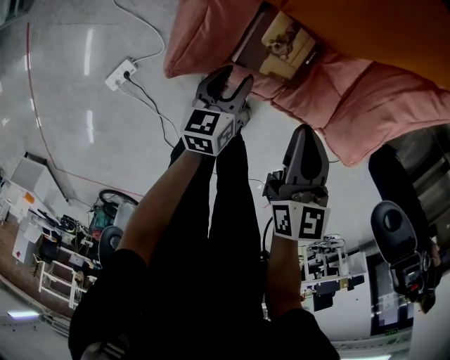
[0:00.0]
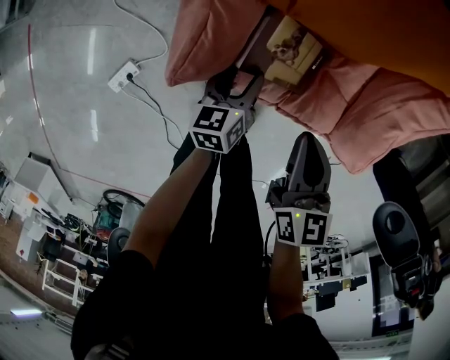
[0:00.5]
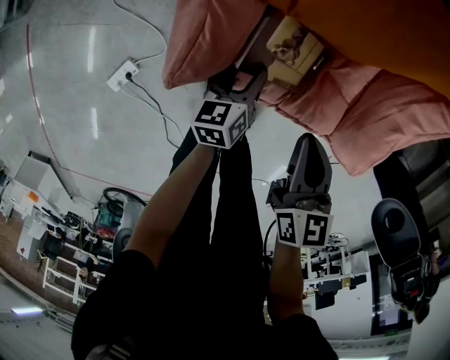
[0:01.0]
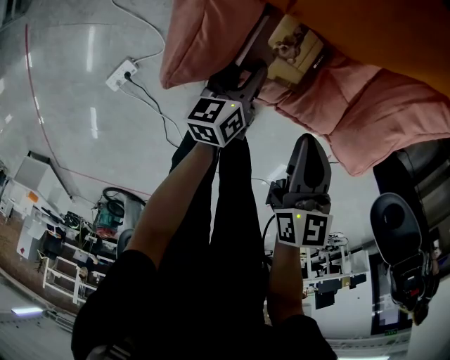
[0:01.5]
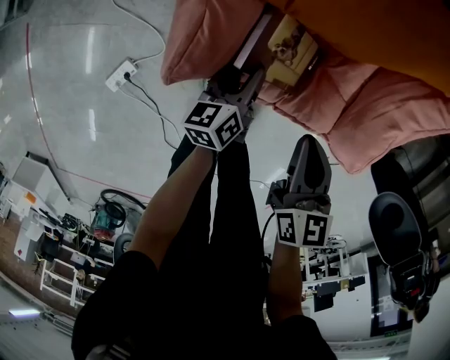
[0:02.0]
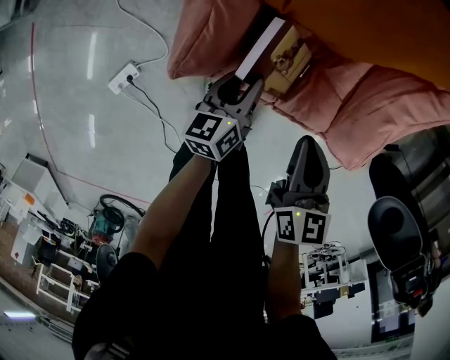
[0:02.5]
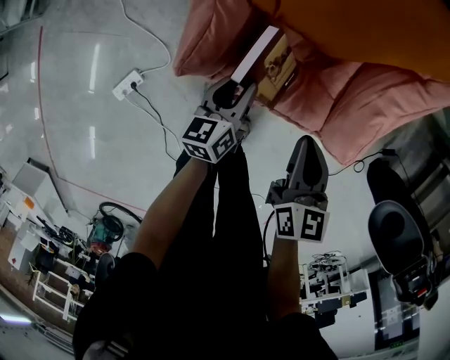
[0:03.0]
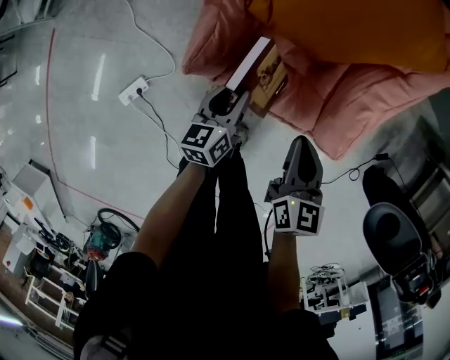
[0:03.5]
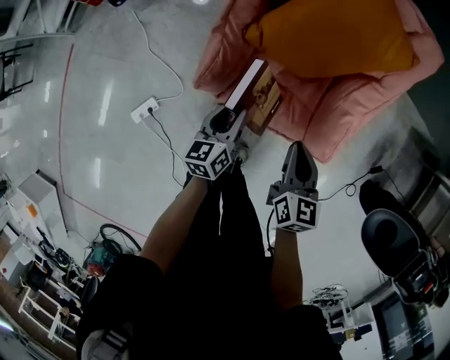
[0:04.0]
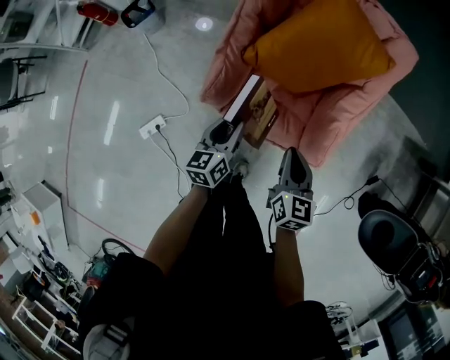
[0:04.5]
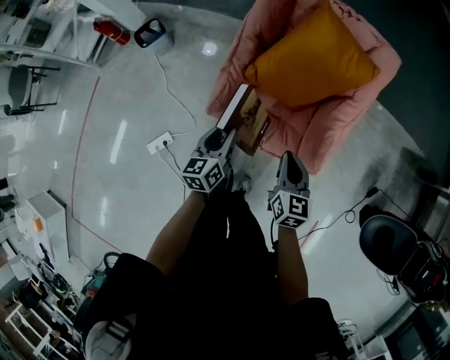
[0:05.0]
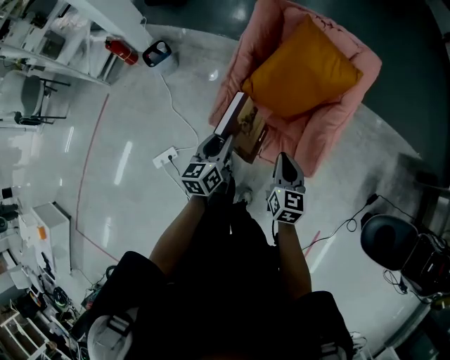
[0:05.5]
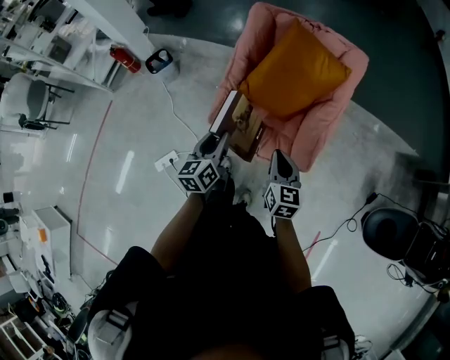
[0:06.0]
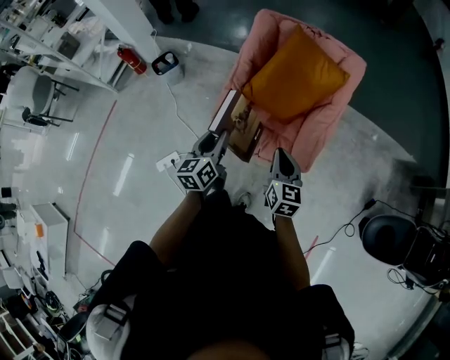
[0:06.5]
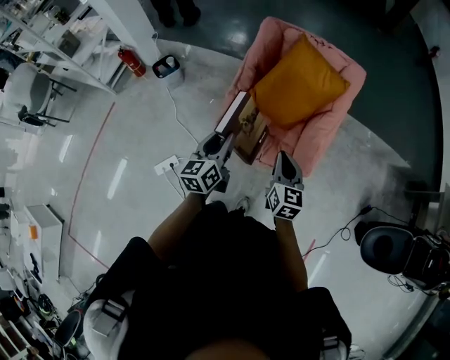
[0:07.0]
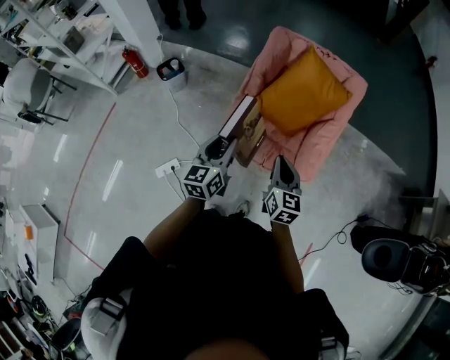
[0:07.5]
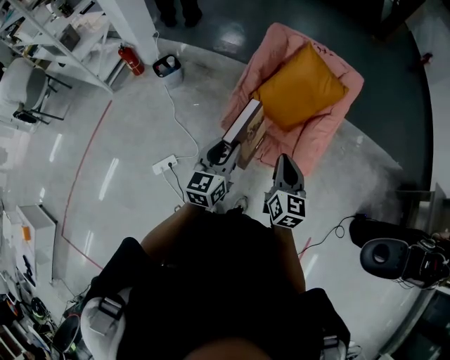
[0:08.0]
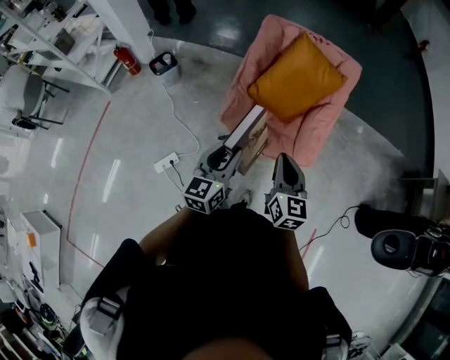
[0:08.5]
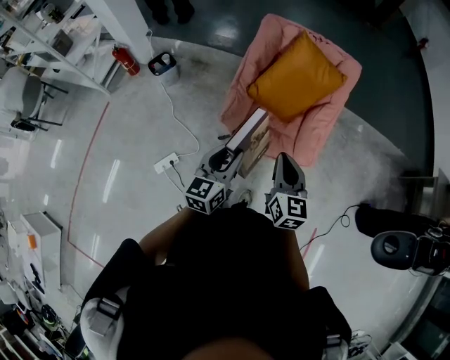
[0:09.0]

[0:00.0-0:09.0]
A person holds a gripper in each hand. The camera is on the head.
0:00.0 to 0:02.0: The grippers stay close to where they were, moving slightly.
0:02.0 to 0:04.5: The grippers both shift upward by about 25 cm.
0:04.5 to 0:07.0: The two grippers go about 20 cm upward and backward.
0:07.0 to 0:09.0: The left gripper heads backward, covering some 10 cm. The right gripper heads upward, backward and to the left, covering approximately 15 cm.

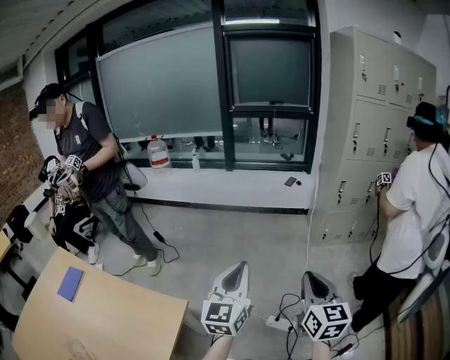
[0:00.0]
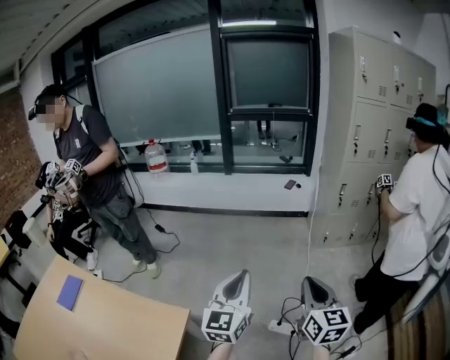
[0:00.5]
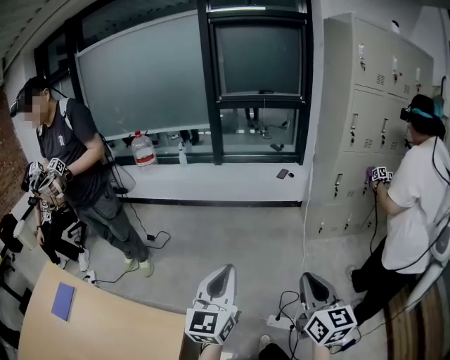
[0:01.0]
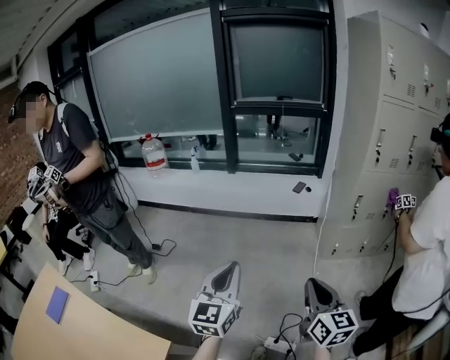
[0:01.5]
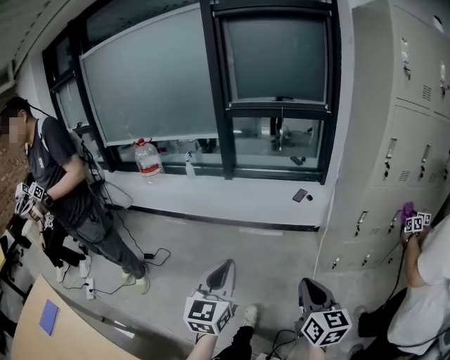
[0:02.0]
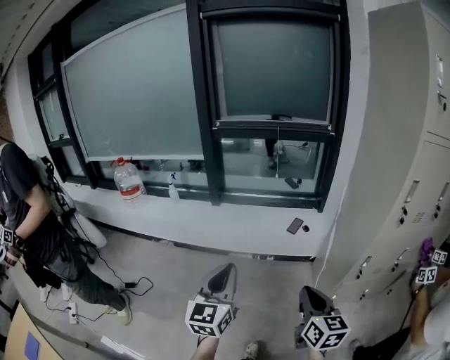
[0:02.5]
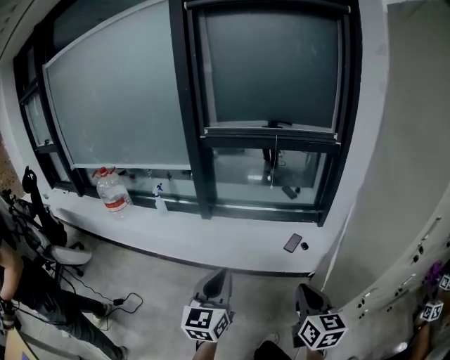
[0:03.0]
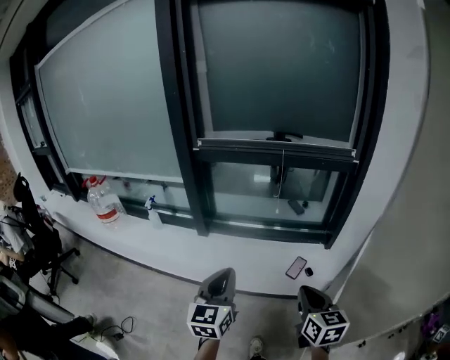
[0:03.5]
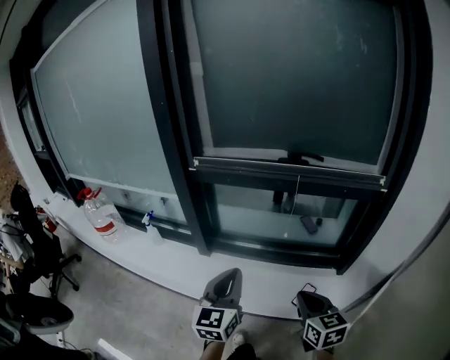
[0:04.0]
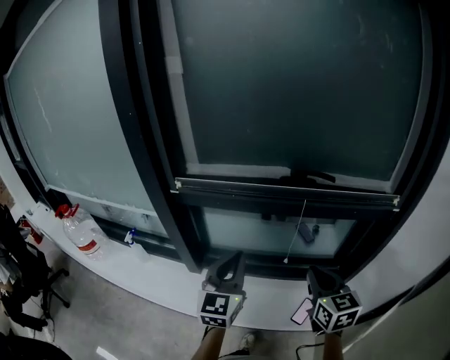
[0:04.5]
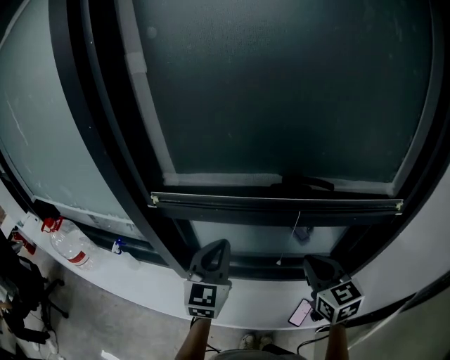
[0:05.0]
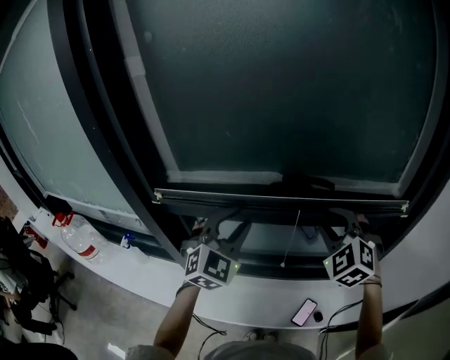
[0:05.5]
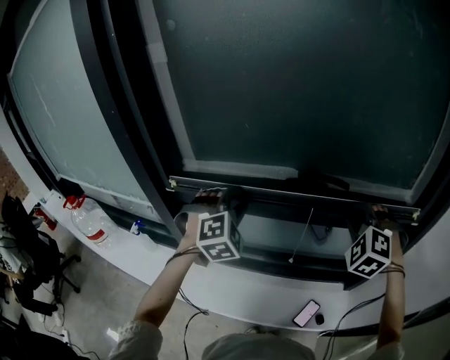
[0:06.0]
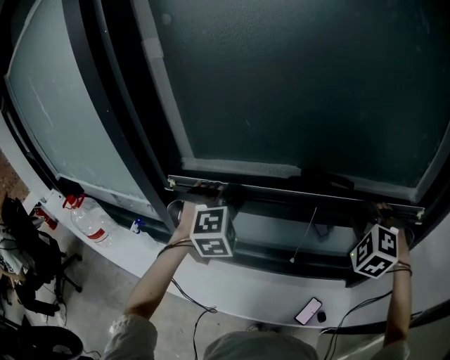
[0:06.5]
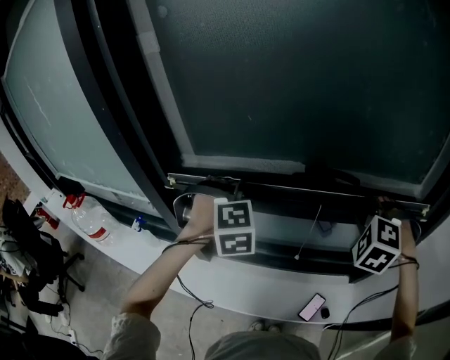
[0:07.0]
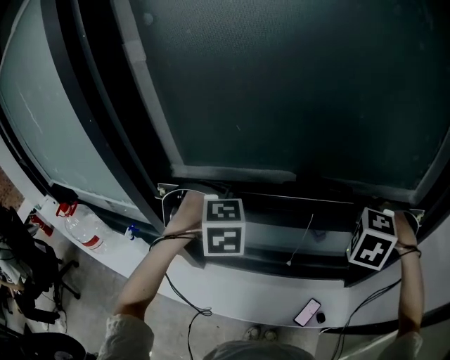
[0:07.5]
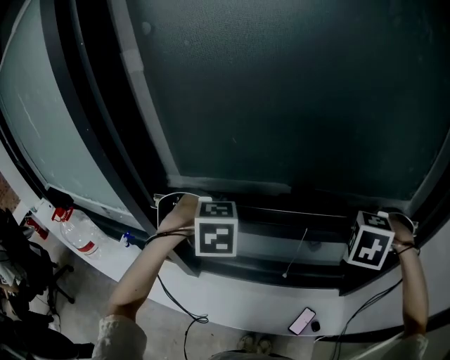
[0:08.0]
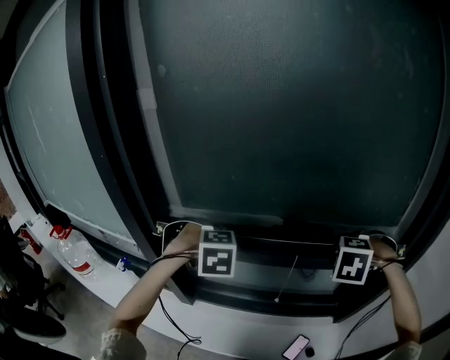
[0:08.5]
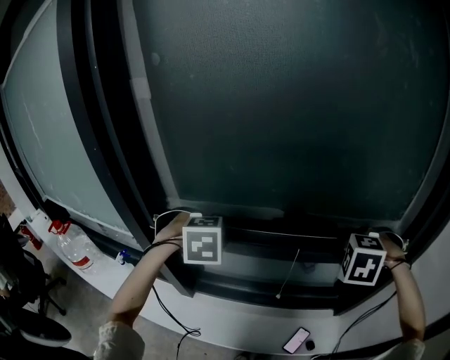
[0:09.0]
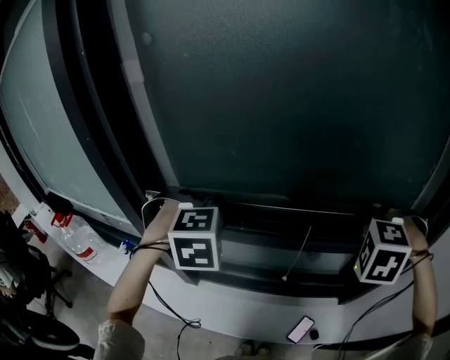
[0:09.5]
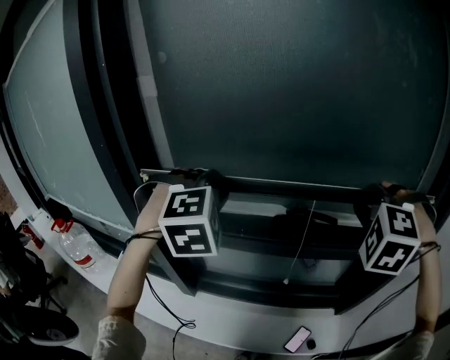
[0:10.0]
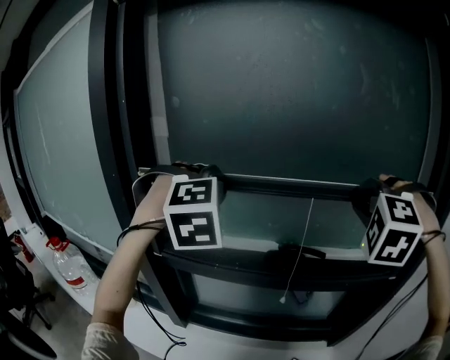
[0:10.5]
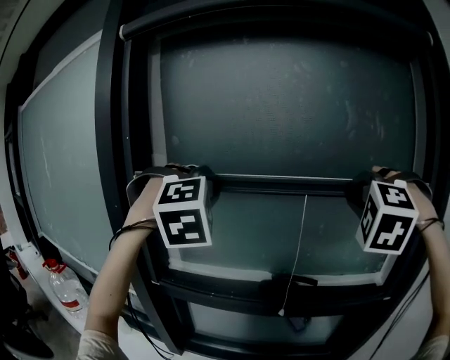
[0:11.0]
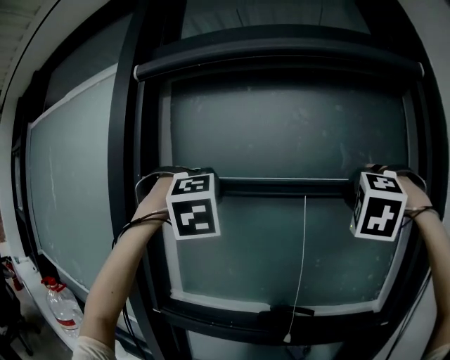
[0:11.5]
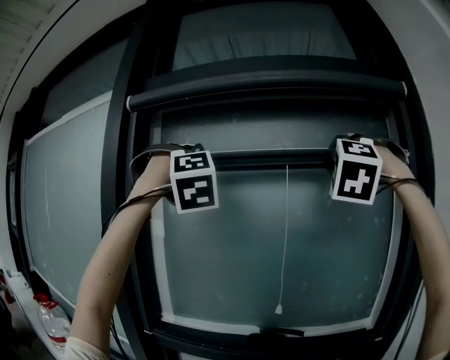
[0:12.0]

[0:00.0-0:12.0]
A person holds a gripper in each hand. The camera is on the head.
0:00.0 to 0:02.0: Both grippers travel together forward, about 35 cm.
0:02.0 to 0:04.0: The pair of grippers is taken forward, approximately 80 cm. The right gripper changes its angle by roughly 20 degrees.
0:04.0 to 0:06.0: Both grippers travel together forward, approximately 35 cm. The left gripper twists approximately 70 degrees clockwise, seen from behind, and opens its fingers. The right gripper rotates around the line of its fingers by approximately 70 degrees, counterclockwise from behind.
0:06.0 to 0:08.0: The left gripper angles its fingers downward, by approximately 30 degrees, and closes, while the right gripper swivels some 30 degrees.
0:08.0 to 0:10.0: Both grippers travel together upward, about 15 cm. The left gripper changes its angle by about 30 degrees, while the right gripper turns by about 30 degrees.
0:10.0 to 0:12.0: Both grippers move upward, some 40 cm. The right gripper points its fingers about 40 degrees further upward, while the left gripper angles its fingers upward, by roughly 40 degrees.

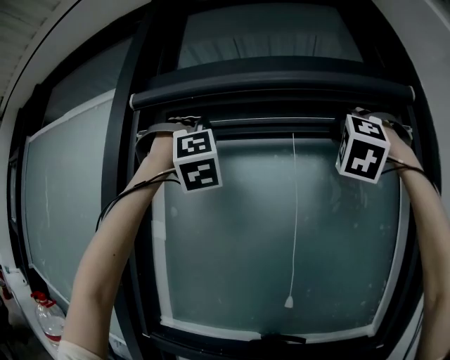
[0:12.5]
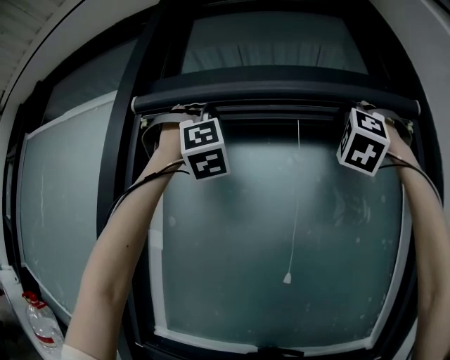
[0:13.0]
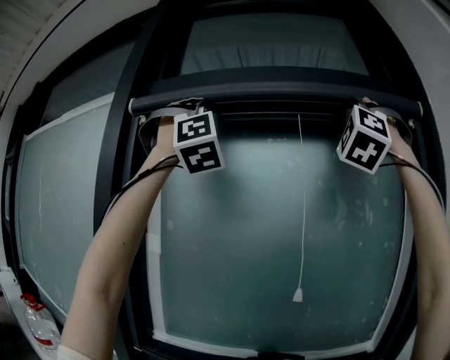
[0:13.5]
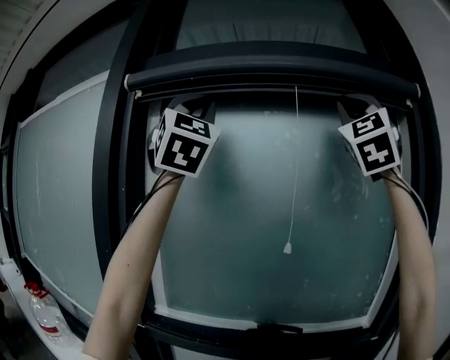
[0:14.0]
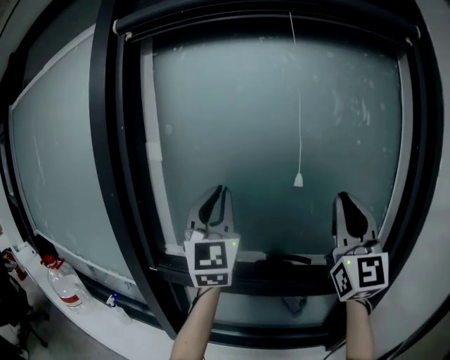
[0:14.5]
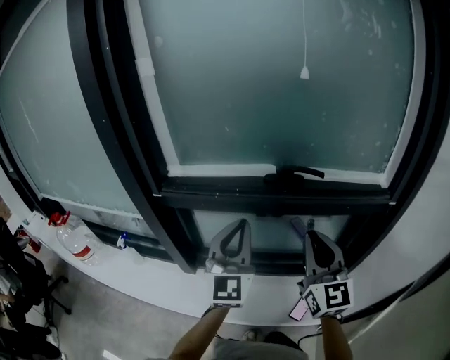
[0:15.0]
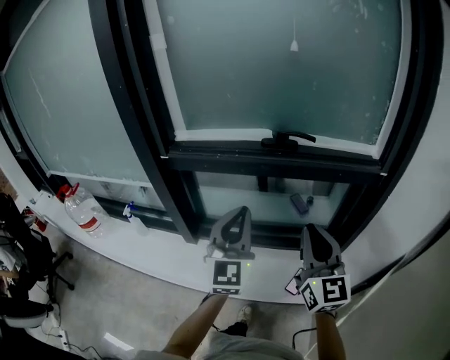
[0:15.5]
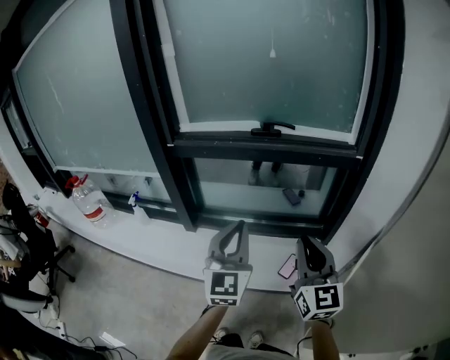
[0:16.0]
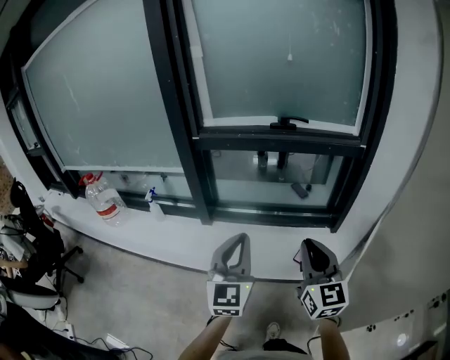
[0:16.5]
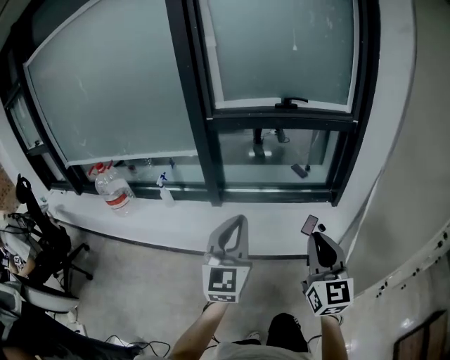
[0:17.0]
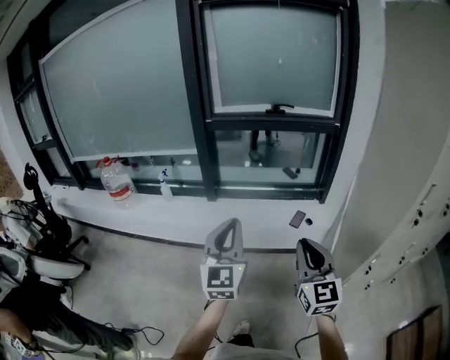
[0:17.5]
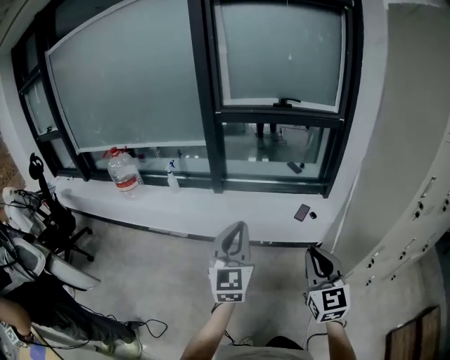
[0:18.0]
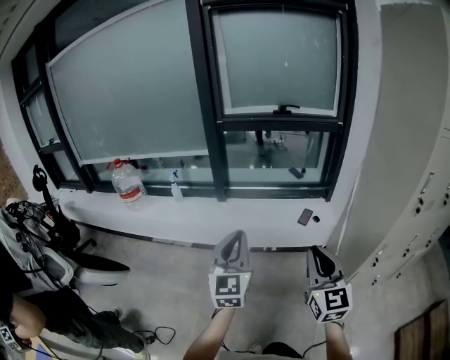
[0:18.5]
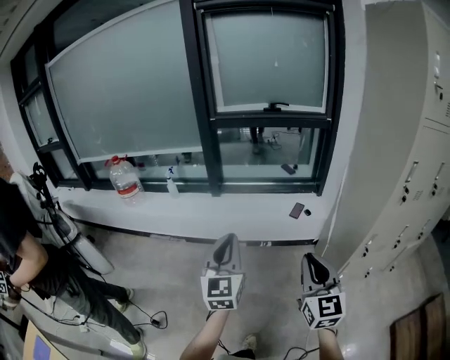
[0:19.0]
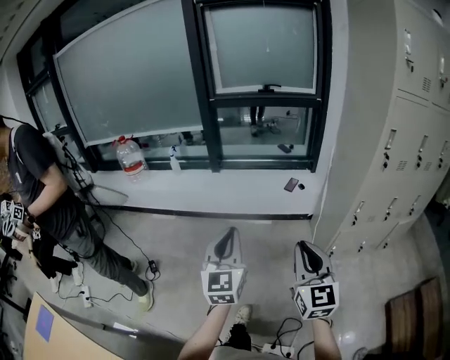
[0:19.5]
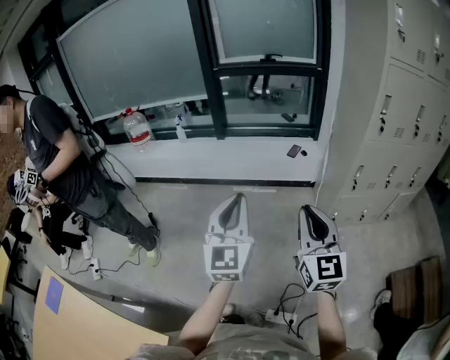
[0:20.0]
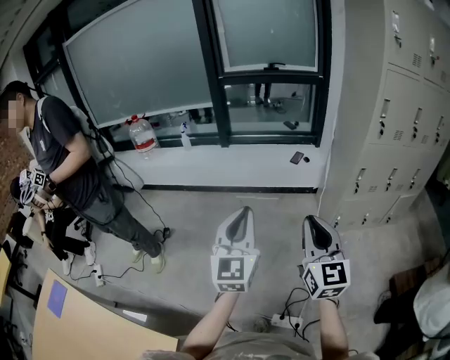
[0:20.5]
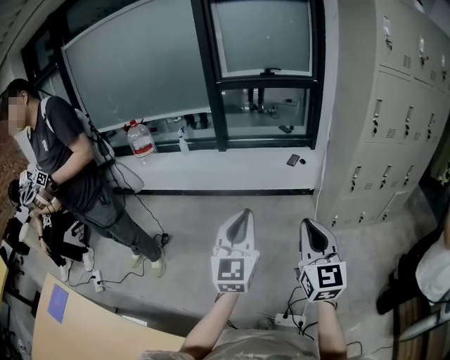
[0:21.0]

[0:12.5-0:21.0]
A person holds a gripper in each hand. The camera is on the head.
0:12.5 to 0:14.5: Both grippers travel together downward, some 30 cm. The left gripper rolls counterclockwise, seen from behind, by about 80 degrees. The right gripper rotates around the line of its fingers by roughly 70 degrees, clockwise from behind.
0:14.5 to 0:16.5: Both grippers are carried backward, some 40 cm. The grippers both shift downward by approximately 30 cm. The left gripper changes its angle by some 30 degrees; the right gripper tilts its fingers roughly 30 degrees downward.
0:16.5 to 0:19.0: The two grippers travel together, backward, roughly 40 cm.
0:19.0 to 0:21.0: The grippers both shift backward by roughly 30 cm.
